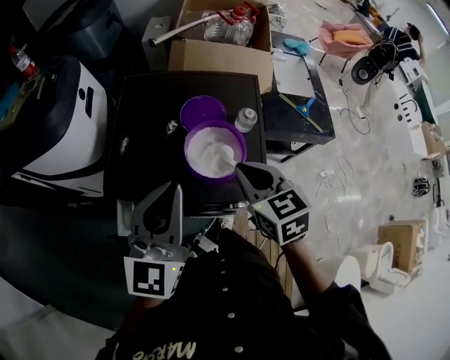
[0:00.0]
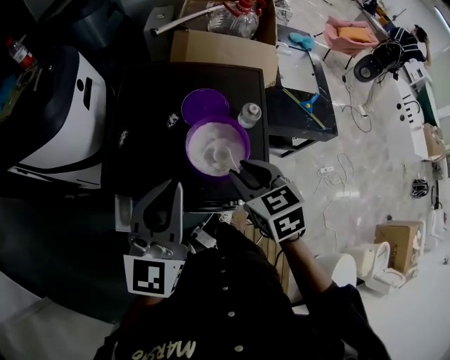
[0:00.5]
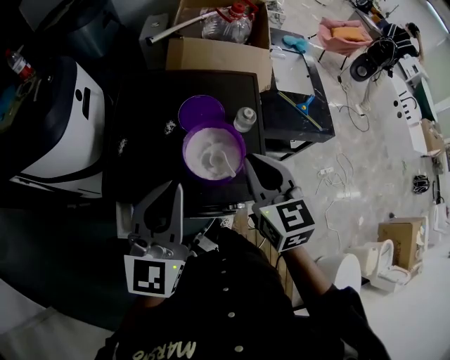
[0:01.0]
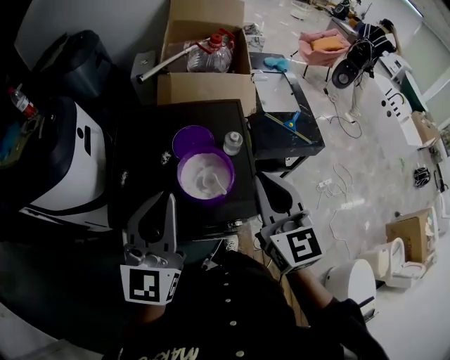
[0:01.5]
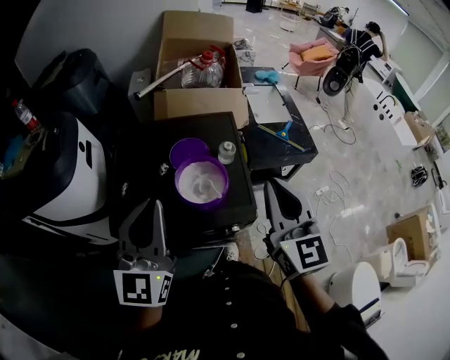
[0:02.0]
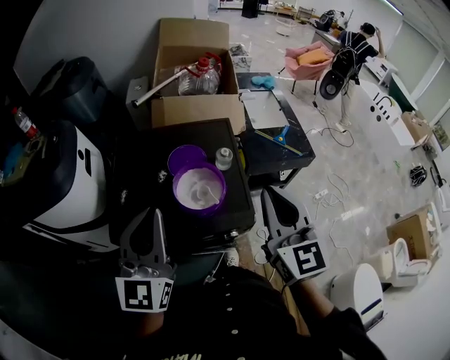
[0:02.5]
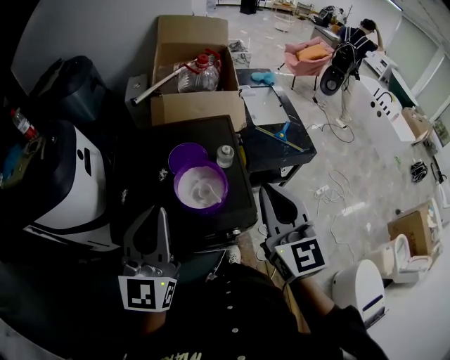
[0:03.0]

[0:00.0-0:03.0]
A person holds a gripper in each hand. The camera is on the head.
0:00.0 to 0:01.5: The right gripper is displaced upward and to the right by some 10 cm, and turns by about 30 degrees.
0:01.5 to 0:03.0: The grippers stay close to where they were, moving slightly.

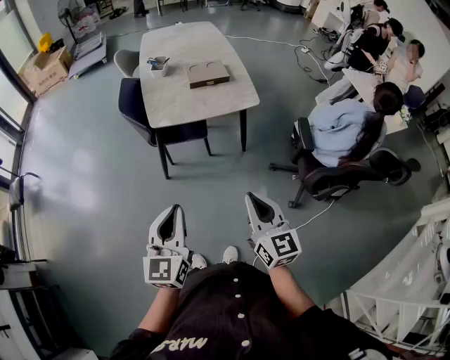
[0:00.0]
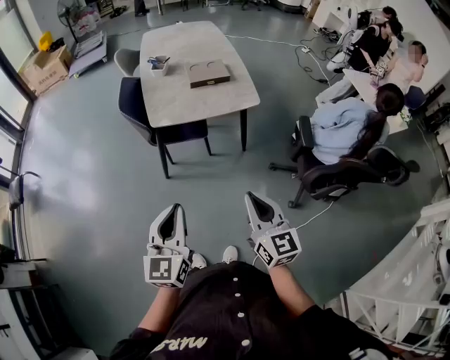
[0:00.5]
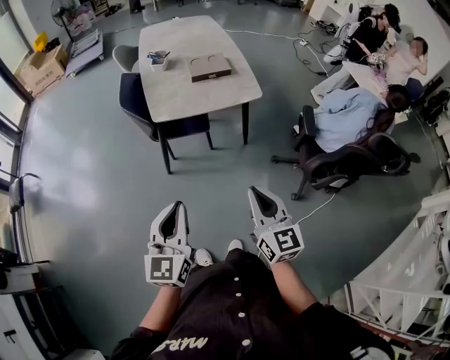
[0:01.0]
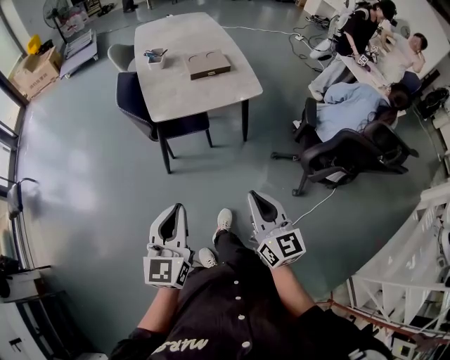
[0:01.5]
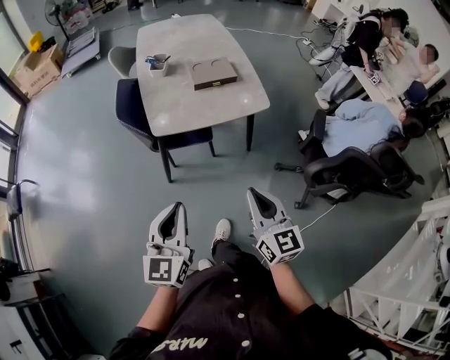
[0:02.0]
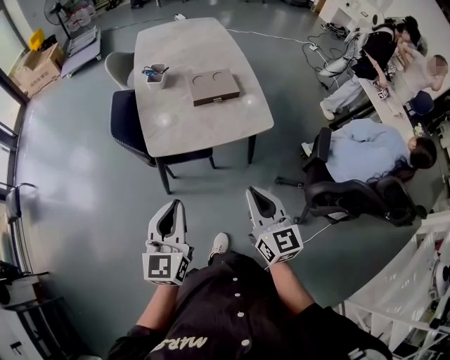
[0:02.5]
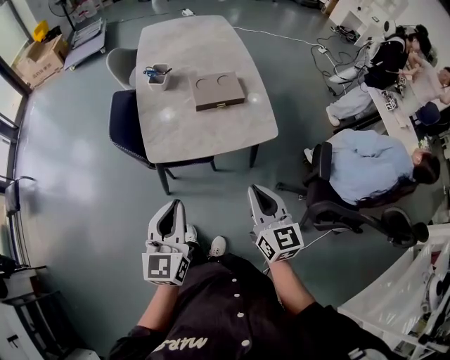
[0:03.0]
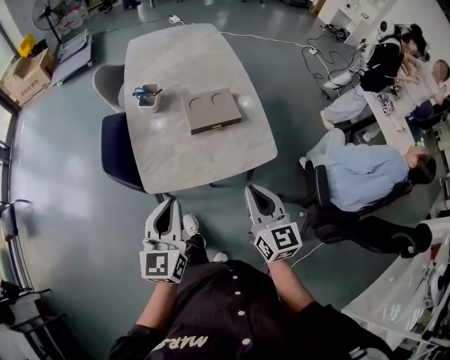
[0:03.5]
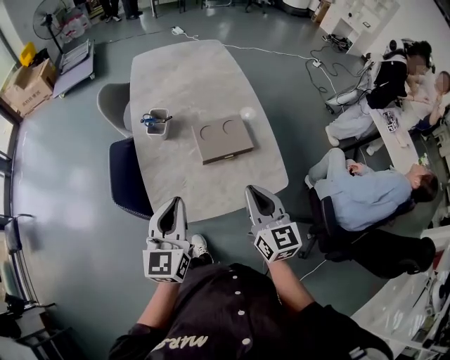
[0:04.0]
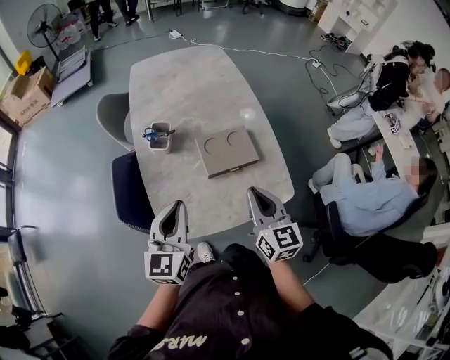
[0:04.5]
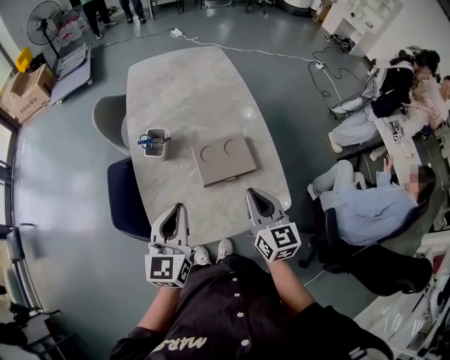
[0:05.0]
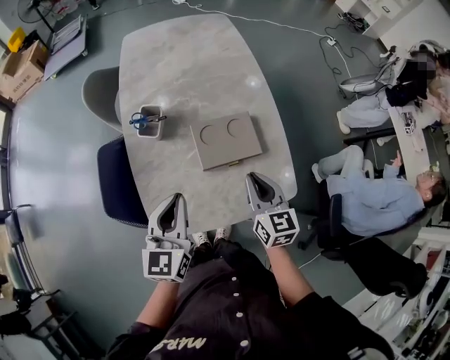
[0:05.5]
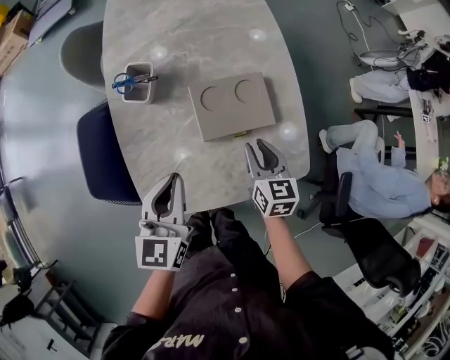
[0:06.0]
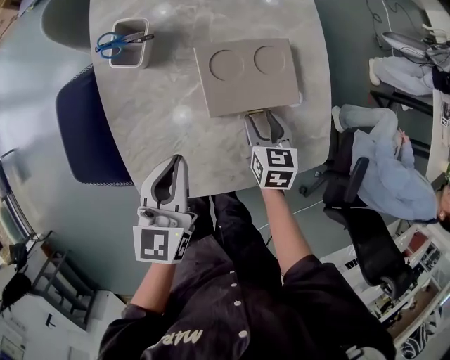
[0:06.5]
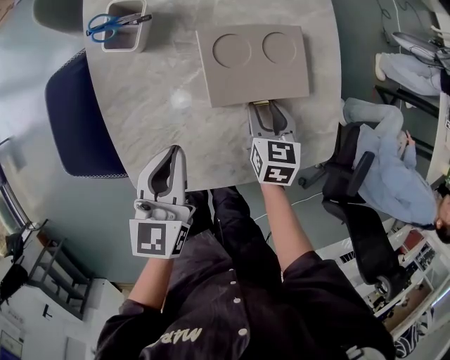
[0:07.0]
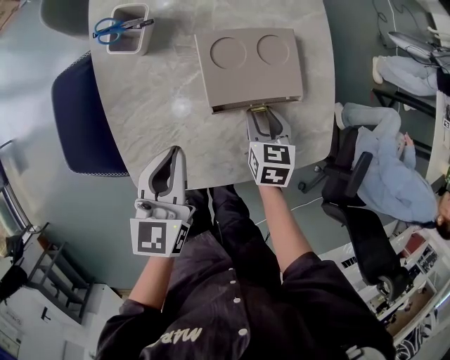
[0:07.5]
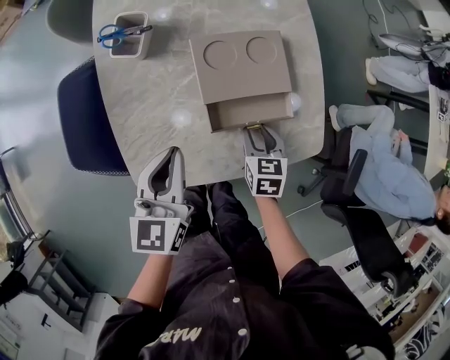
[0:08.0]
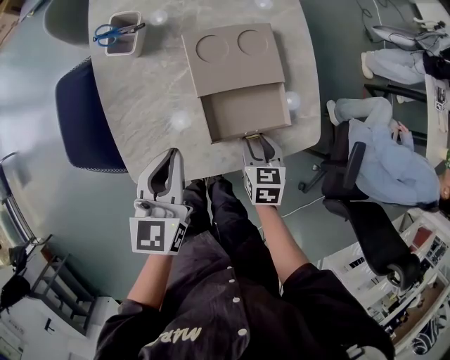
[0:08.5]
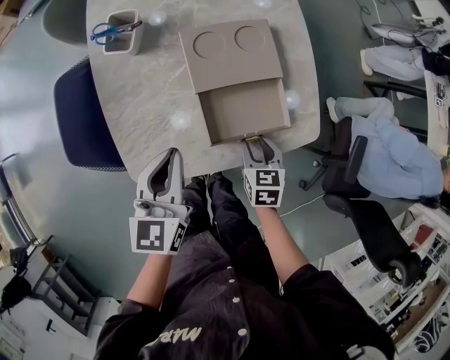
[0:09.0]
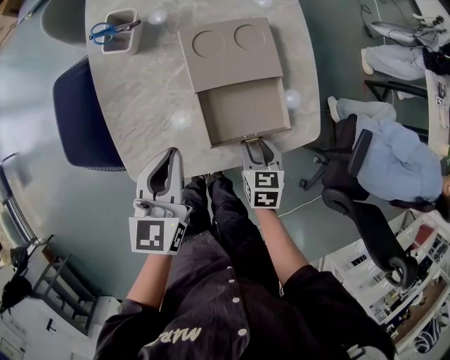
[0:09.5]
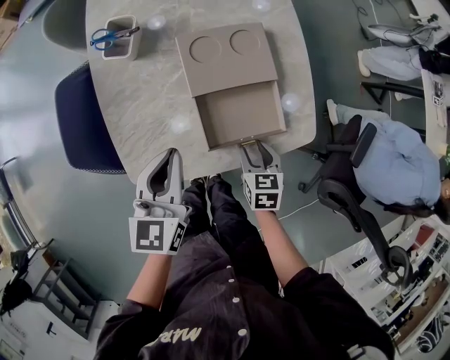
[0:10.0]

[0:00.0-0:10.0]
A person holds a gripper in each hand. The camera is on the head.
0:00.0 to 0:02.0: Both grippers move forward, approximately 10 cm.
0:02.0 to 0:04.0: The pair of grippers is taken forward, roughly 40 cm.
0:04.0 to 0:06.0: The left gripper heads forward and downward, covering about 20 cm. The right gripper heads downward and forward, covering some 25 cm, rotates roughly 20 degrees, and opens its fingers.
0:06.0 to 0:08.0: The left gripper is displaced downward by some 5 cm. The right gripper is displaced downward by about 10 cm.
0:08.0 to 0:10.0: The right gripper is displaced backward by roughly 10 cm.

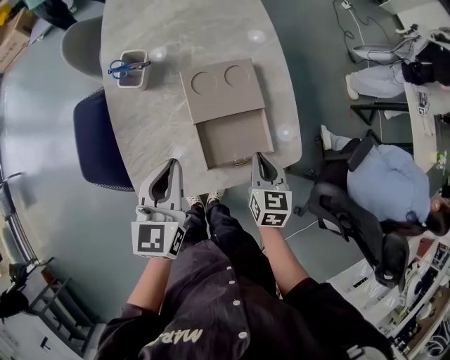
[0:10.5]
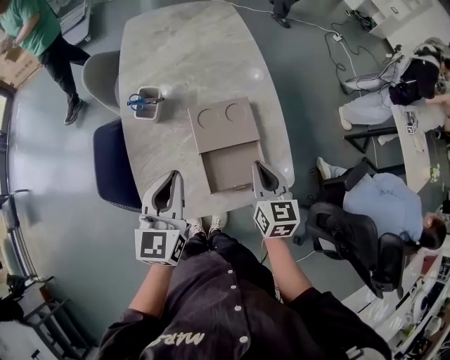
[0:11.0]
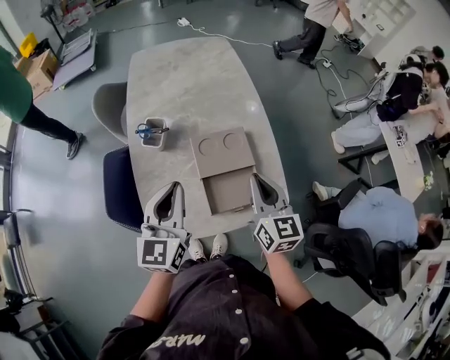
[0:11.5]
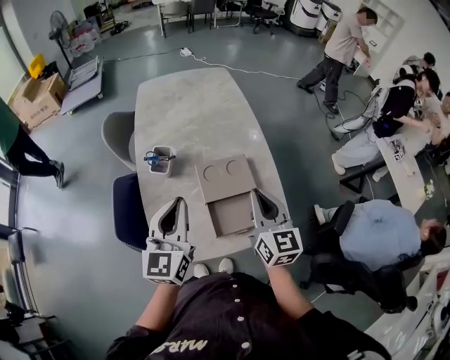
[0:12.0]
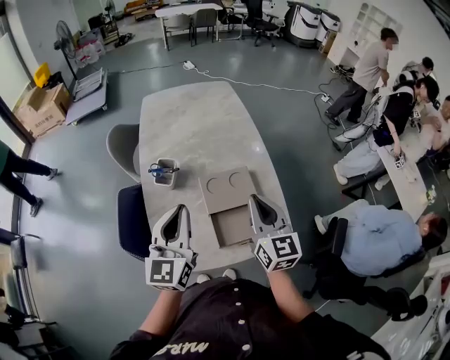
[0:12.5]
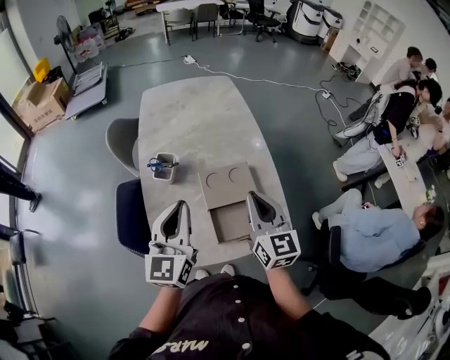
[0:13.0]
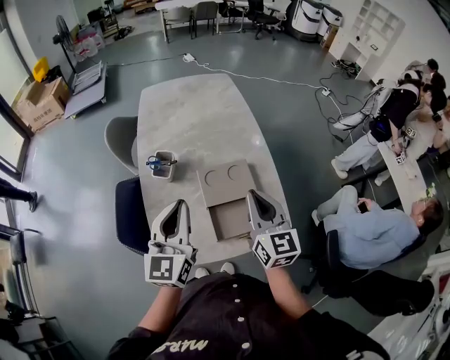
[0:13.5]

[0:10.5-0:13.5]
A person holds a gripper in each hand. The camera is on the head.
0:10.5 to 0:12.0: The right gripper goes roughly 25 cm upward, and changes its angle by about 30 degrees. The left gripper goes roughly 15 cm upward.
0:12.0 to 0:13.5: The grippers stay close to where they were, moving slightly.

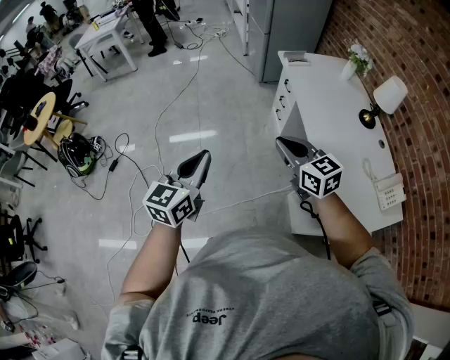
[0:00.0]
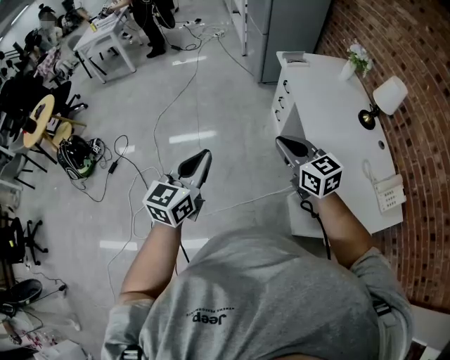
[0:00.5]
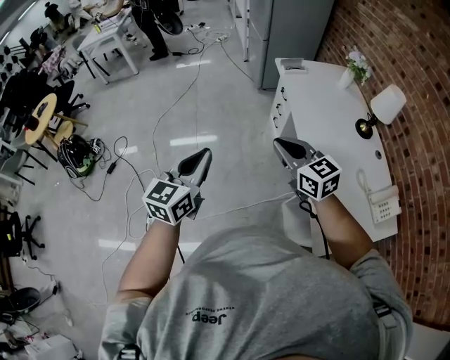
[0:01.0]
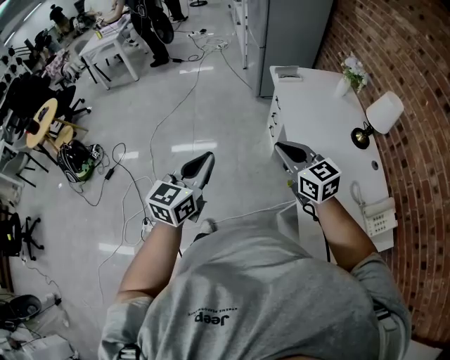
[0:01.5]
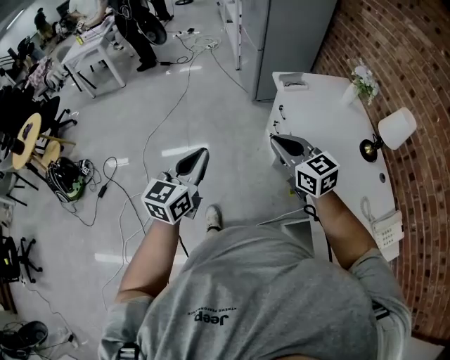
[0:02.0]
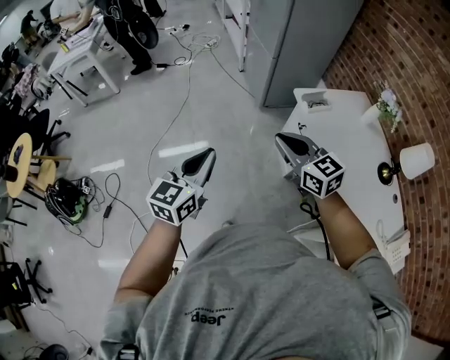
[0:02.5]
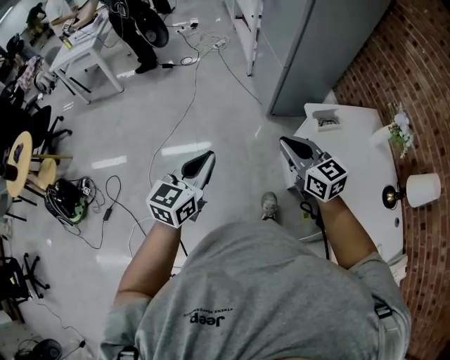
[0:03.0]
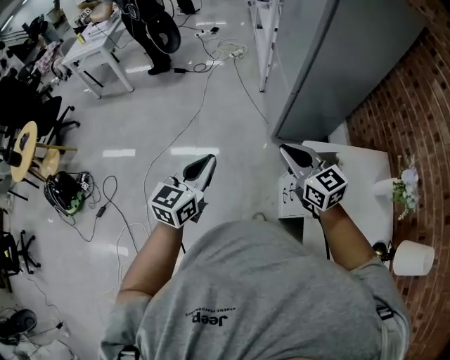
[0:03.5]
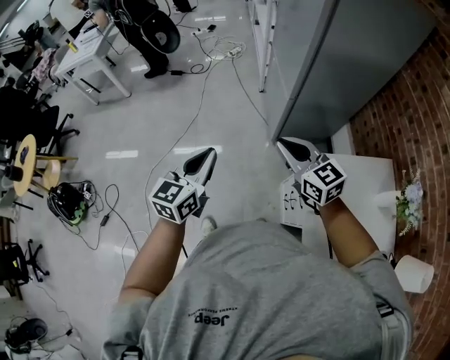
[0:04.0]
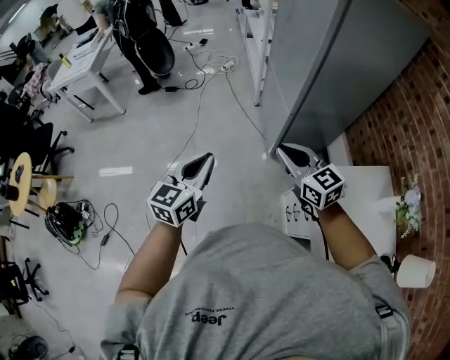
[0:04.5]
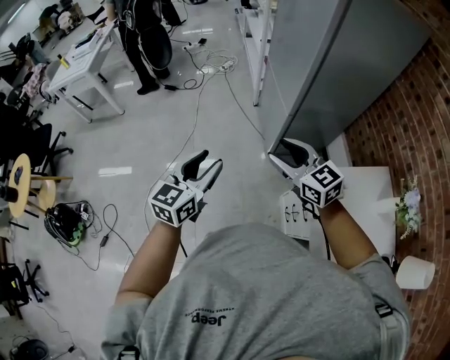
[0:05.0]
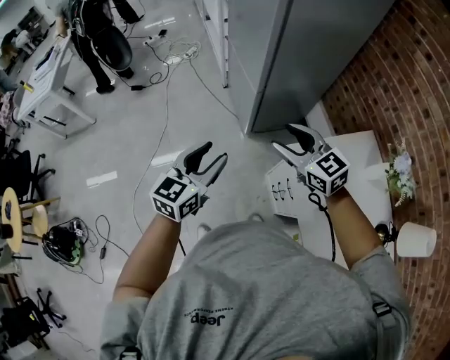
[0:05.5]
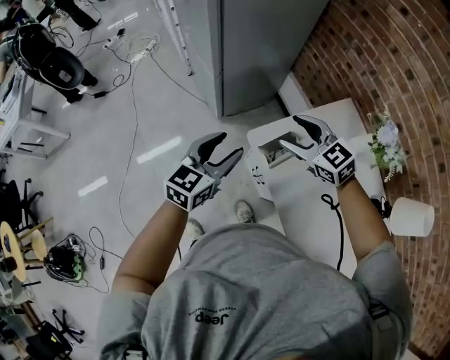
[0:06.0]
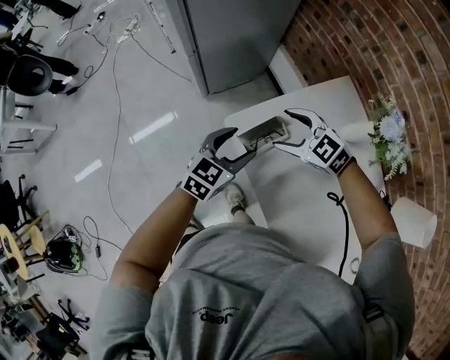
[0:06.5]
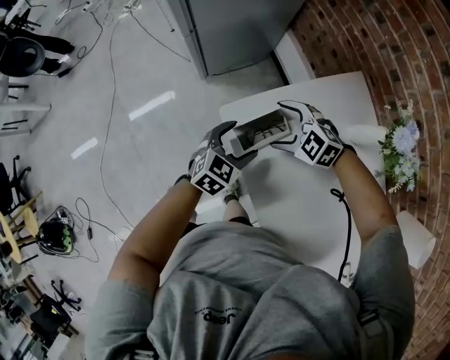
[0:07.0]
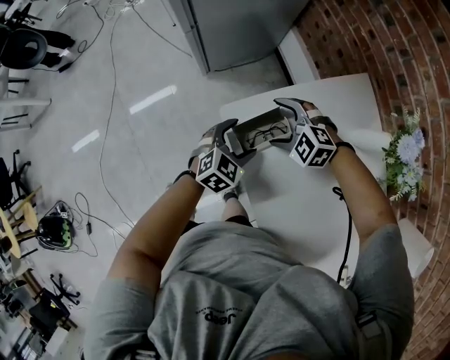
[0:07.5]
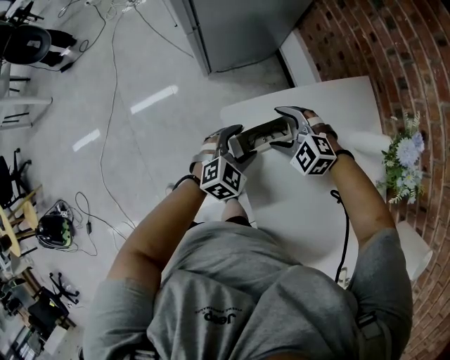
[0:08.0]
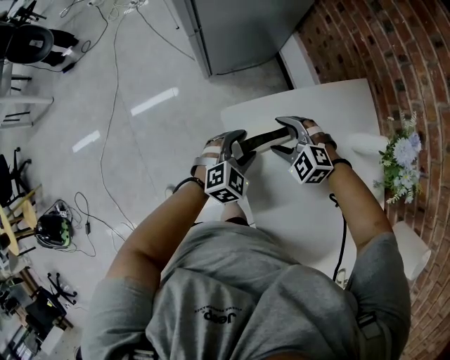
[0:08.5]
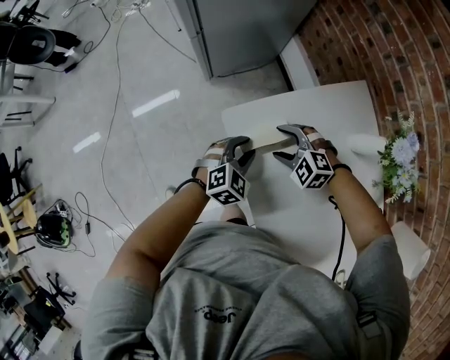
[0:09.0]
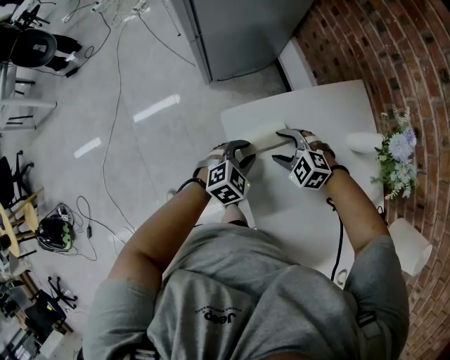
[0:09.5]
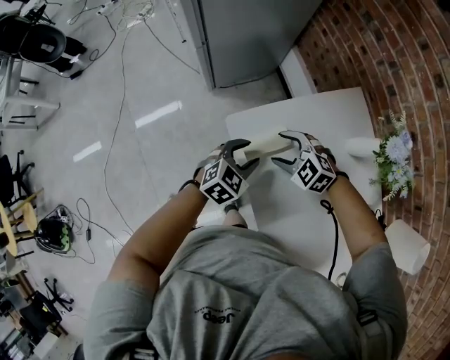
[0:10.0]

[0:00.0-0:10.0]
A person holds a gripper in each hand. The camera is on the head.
0:00.0 to 0:02.0: The two grippers go approximately 20 cm forward.
0:02.0 to 0:04.0: The two grippers travel together, forward, approximately 60 cm.
0:04.0 to 0:06.0: The right gripper moves some 25 cm, rotates roughly 20 degrees, and opens its fingers. Meanwhile the left gripper ends up roughly 25 cm from where it was, changes its angle by approximately 40 degrees, and opens its fingers.
0:06.0 to 0:08.0: The left gripper is displaced downward and to the right by some 30 cm, and turns by roughly 30 degrees. Meanwhile the right gripper moves downward, roughly 25 cm, and turns by some 40 degrees.
0:08.0 to 0:10.0: The left gripper shifts about 5 cm upward, and closes its fingers. Meanwhile the right gripper changes place by approximately 5 cm.
